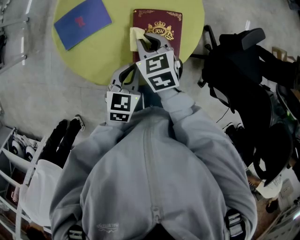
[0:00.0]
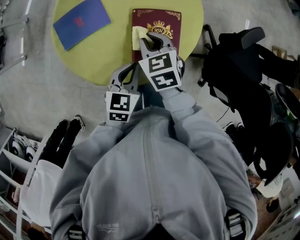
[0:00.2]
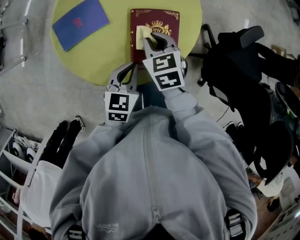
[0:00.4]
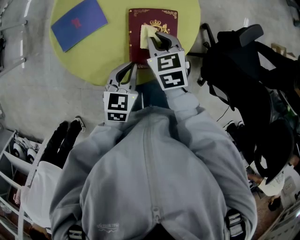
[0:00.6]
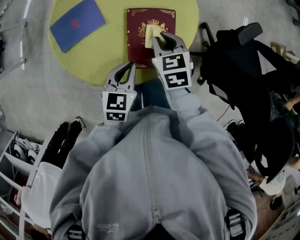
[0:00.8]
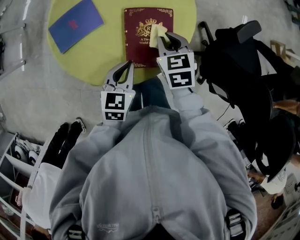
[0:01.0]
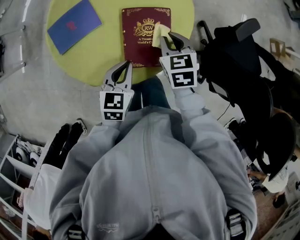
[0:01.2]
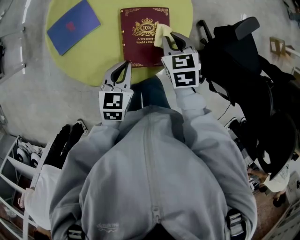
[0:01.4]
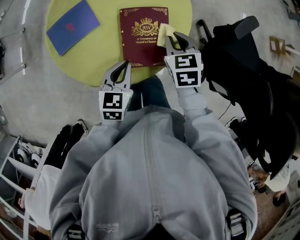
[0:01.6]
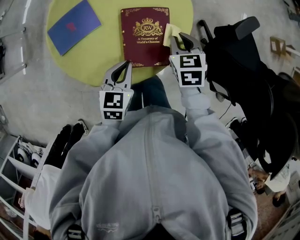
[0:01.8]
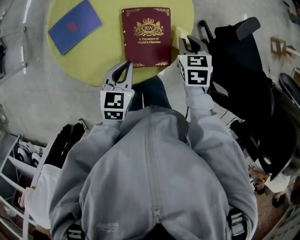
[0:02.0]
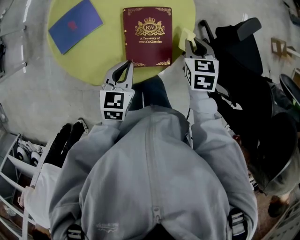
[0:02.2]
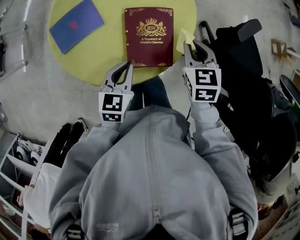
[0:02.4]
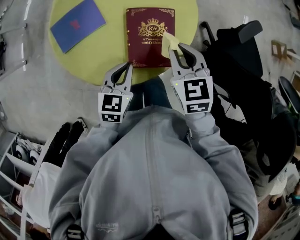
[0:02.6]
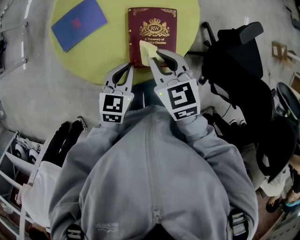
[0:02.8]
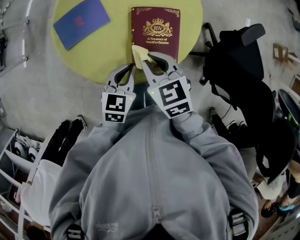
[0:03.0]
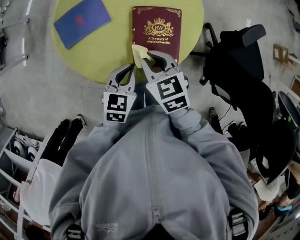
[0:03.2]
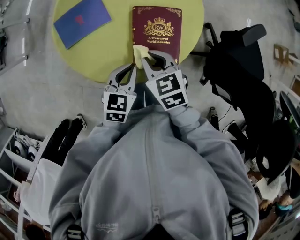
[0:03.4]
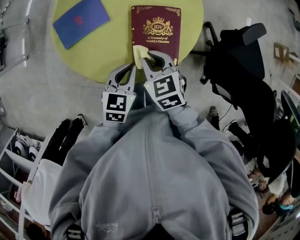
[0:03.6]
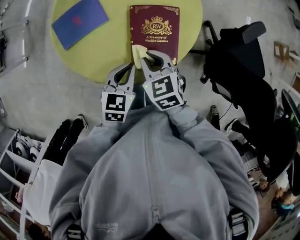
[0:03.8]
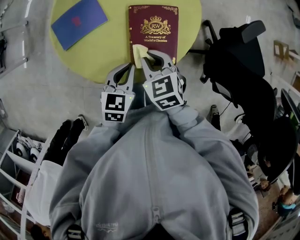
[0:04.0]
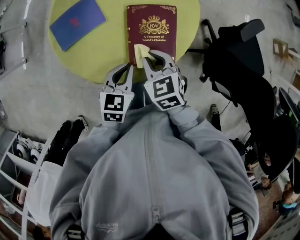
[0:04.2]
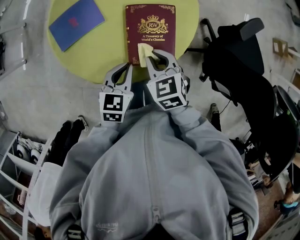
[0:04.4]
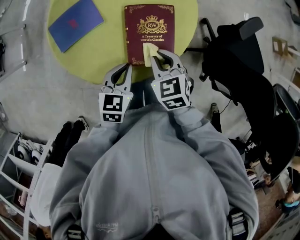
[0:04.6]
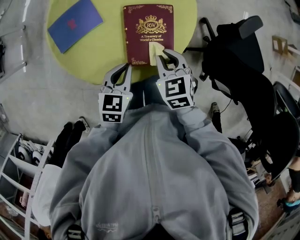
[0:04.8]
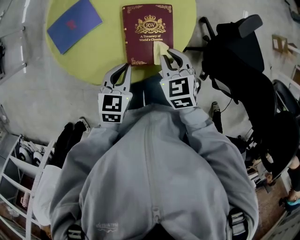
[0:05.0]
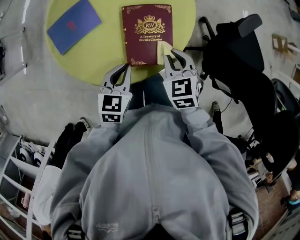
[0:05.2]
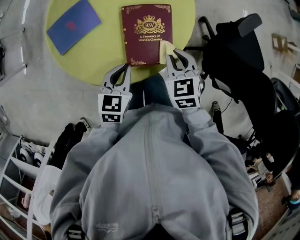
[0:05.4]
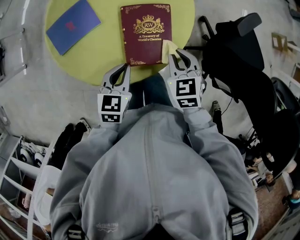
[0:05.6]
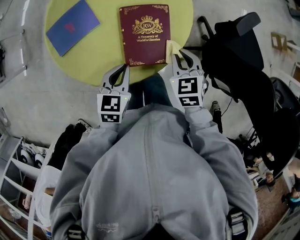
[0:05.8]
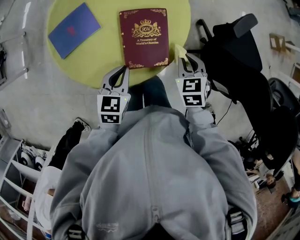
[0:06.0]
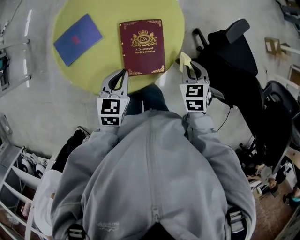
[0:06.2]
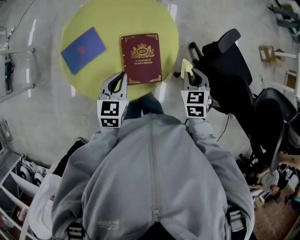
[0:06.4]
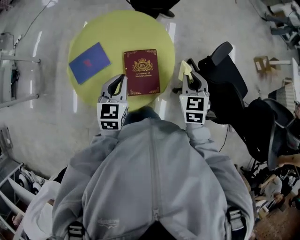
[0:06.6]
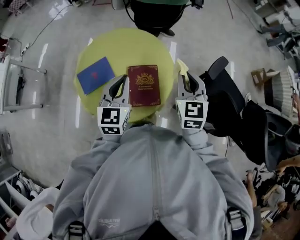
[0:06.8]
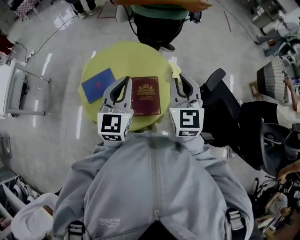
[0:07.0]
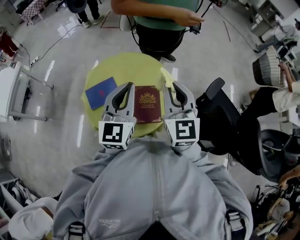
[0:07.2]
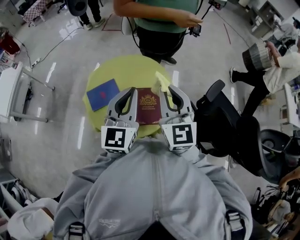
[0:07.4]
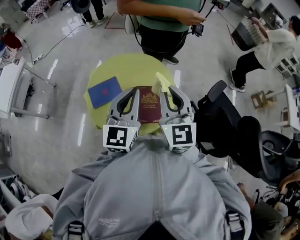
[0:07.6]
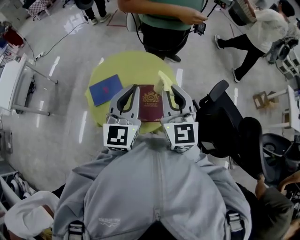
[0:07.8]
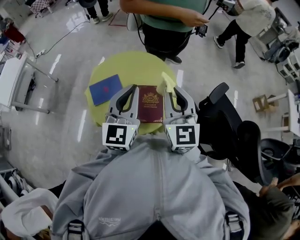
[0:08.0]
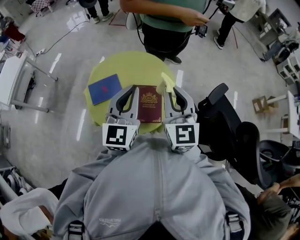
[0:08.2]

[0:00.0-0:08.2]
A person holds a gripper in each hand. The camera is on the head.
0.0 to 1.6 s: The right gripper heads to the right, covering roughly 15 cm.
1.6 to 3.2 s: The right gripper travels to the left and backward by approximately 15 cm, and changes its angle by some 20 degrees.
3.2 to 5.0 s: The right gripper heads to the right, covering some 10 cm.
5.0 to 6.6 s: The left gripper is displaced upward and forward by roughly 20 cm, while the right gripper moves upward and to the right, about 20 cm, and turns by some 20 degrees.
6.6 to 8.2 s: The right gripper shifts about 25 cm upward and to the left, and points its fingers approximately 30 degrees further upward. The left gripper goes about 25 cm upward, and swivels some 30 degrees.

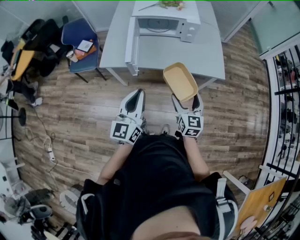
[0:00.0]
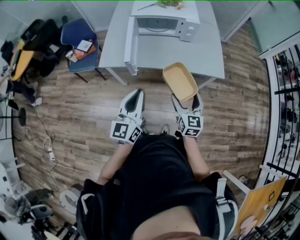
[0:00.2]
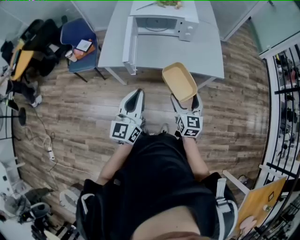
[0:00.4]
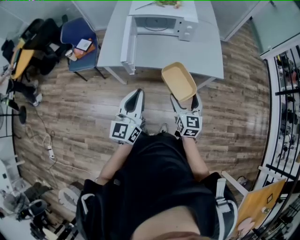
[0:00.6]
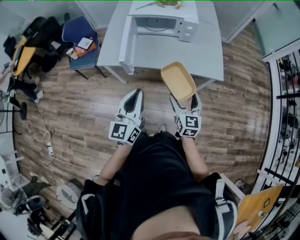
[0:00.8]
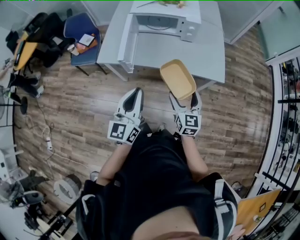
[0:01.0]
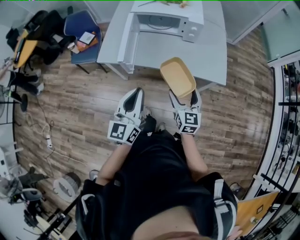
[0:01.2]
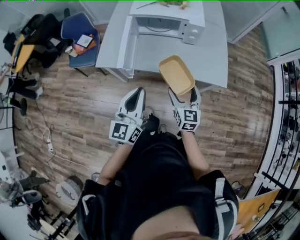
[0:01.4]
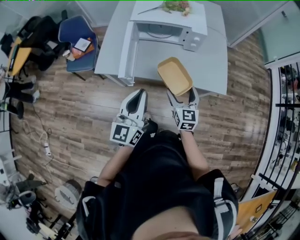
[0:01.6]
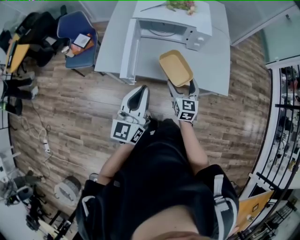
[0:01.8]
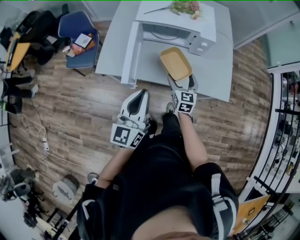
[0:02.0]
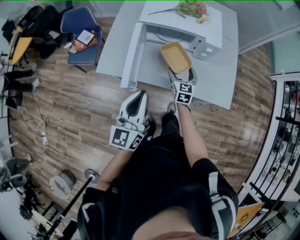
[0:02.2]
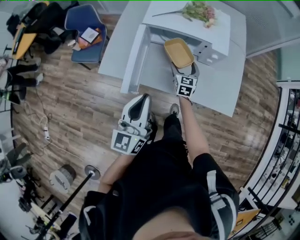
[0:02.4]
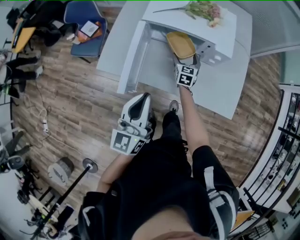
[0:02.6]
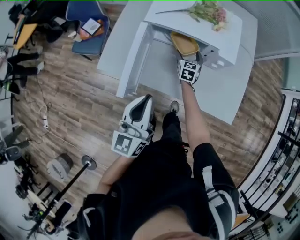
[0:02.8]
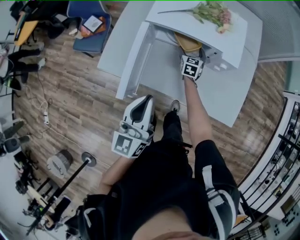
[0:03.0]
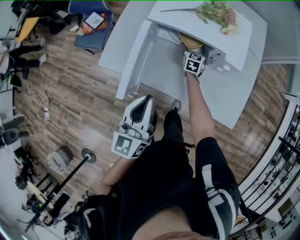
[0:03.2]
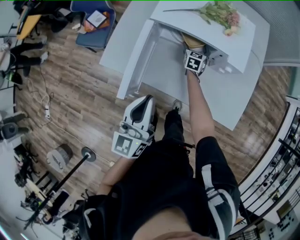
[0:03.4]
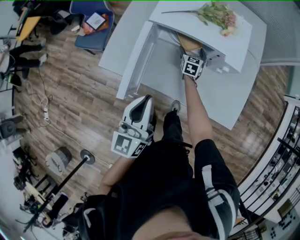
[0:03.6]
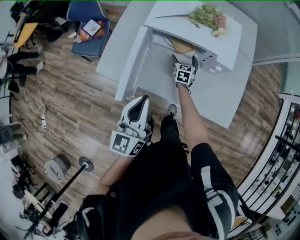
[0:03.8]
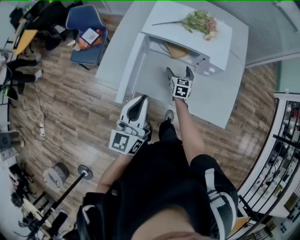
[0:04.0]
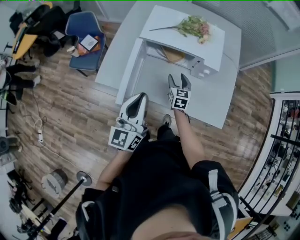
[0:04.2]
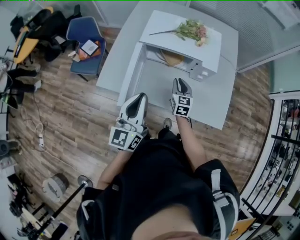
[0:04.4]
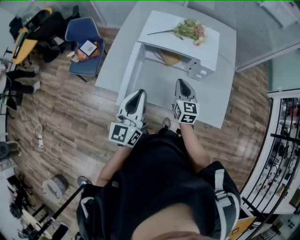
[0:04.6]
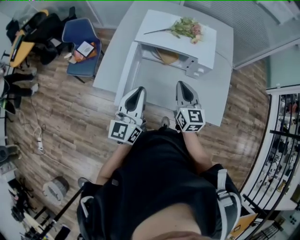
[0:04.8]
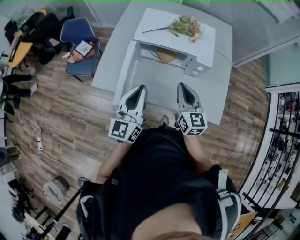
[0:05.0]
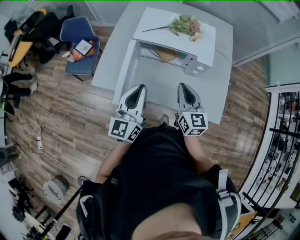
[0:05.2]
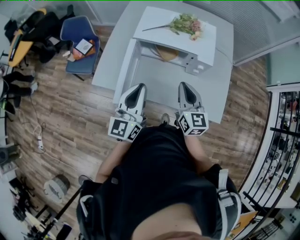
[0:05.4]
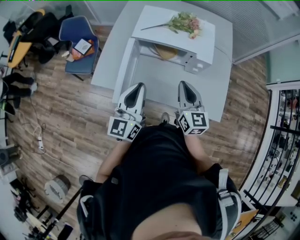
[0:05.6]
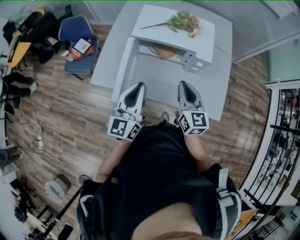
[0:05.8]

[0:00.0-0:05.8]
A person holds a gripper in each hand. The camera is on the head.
0.0 to 1.4 s: The grippers both shift forward by approximately 10 cm.
1.4 to 2.8 s: The left gripper shifts roughly 20 cm forward. The right gripper heads forward and downward, covering about 50 cm.
2.8 to 4.4 s: The left gripper shifts roughly 5 cm upward; the right gripper is displaced backward and upward by approximately 15 cm, and closes its fingers.
4.4 to 5.8 s: The right gripper shifts about 15 cm upward and backward.

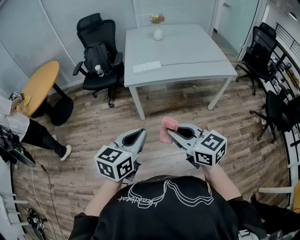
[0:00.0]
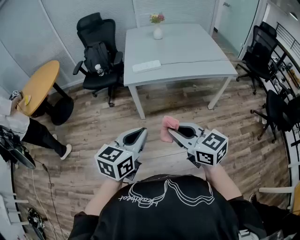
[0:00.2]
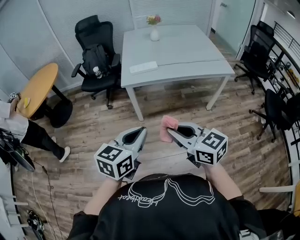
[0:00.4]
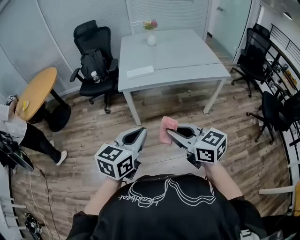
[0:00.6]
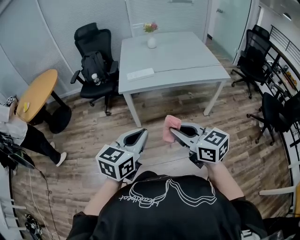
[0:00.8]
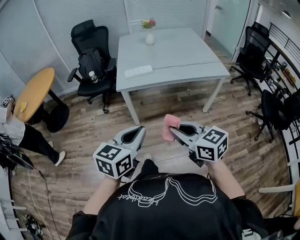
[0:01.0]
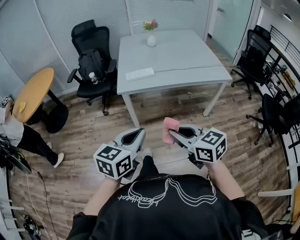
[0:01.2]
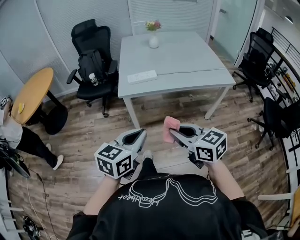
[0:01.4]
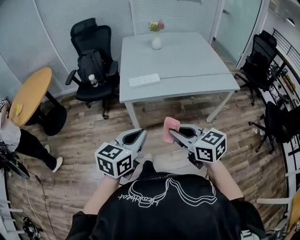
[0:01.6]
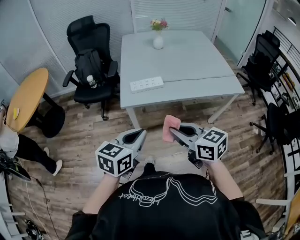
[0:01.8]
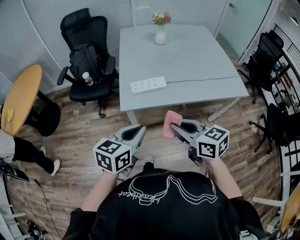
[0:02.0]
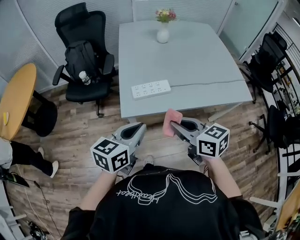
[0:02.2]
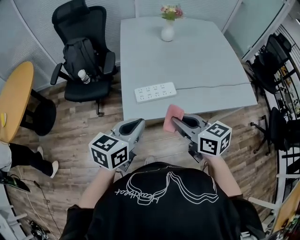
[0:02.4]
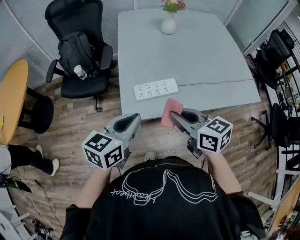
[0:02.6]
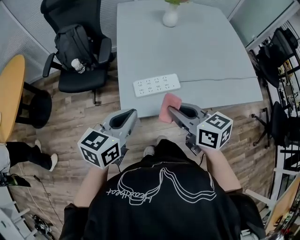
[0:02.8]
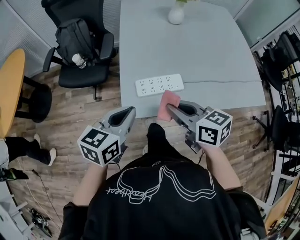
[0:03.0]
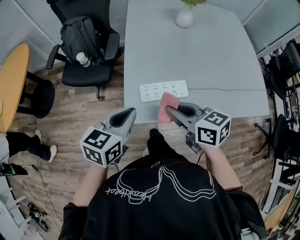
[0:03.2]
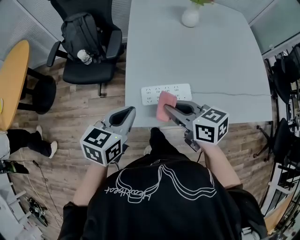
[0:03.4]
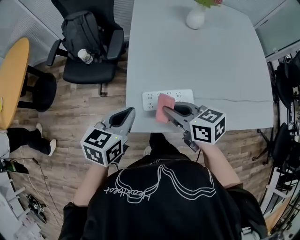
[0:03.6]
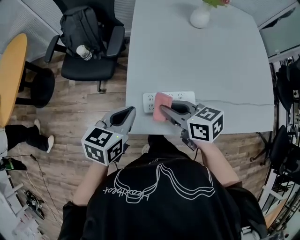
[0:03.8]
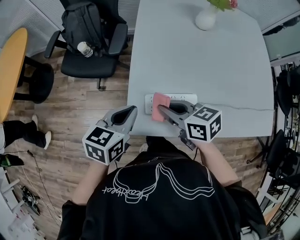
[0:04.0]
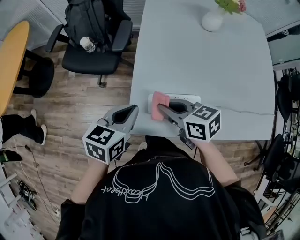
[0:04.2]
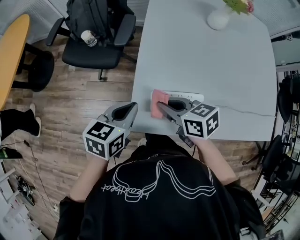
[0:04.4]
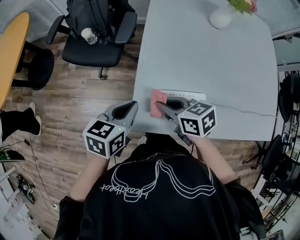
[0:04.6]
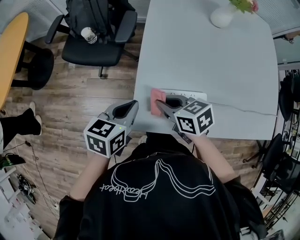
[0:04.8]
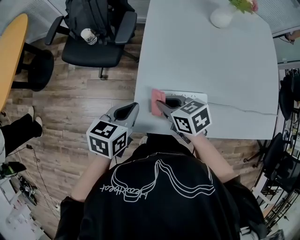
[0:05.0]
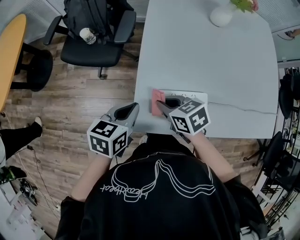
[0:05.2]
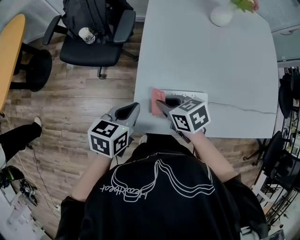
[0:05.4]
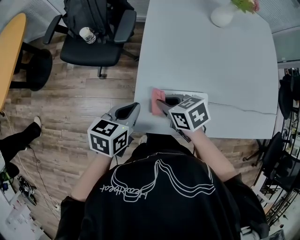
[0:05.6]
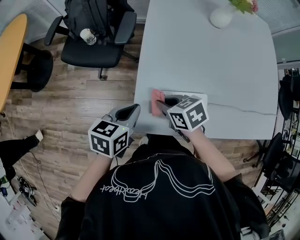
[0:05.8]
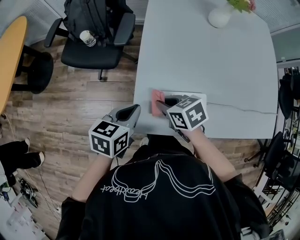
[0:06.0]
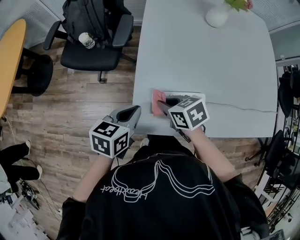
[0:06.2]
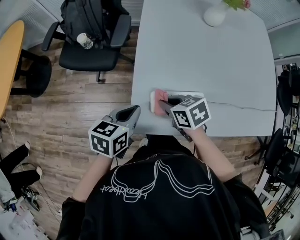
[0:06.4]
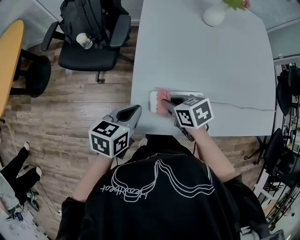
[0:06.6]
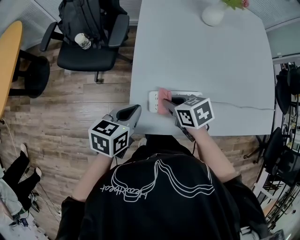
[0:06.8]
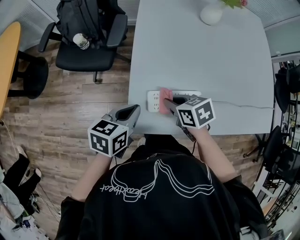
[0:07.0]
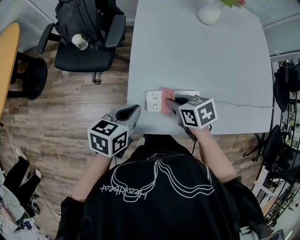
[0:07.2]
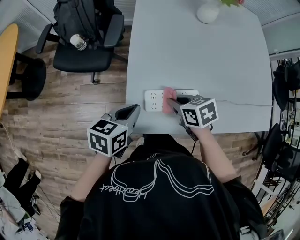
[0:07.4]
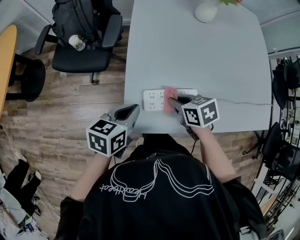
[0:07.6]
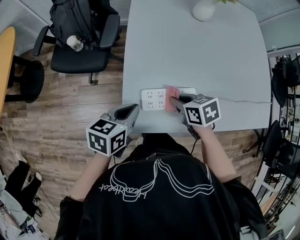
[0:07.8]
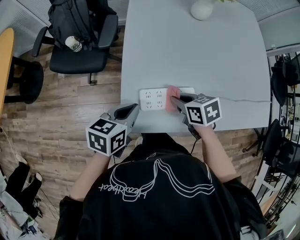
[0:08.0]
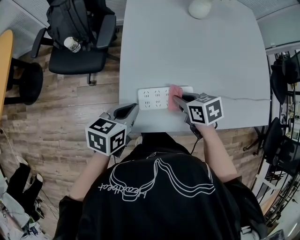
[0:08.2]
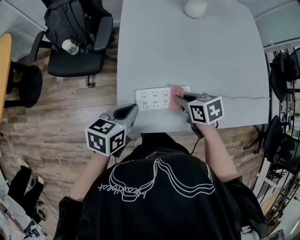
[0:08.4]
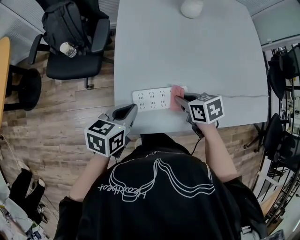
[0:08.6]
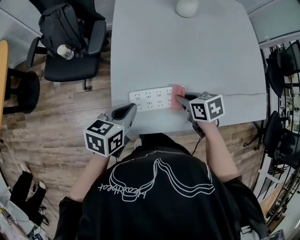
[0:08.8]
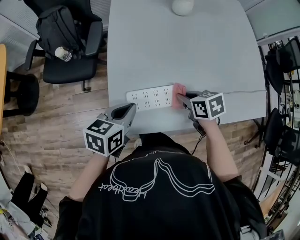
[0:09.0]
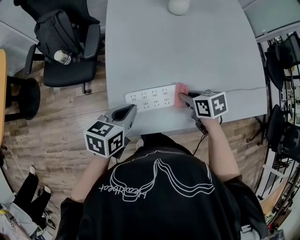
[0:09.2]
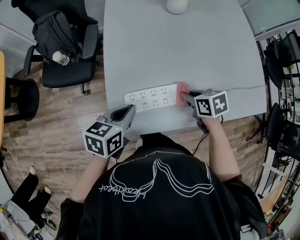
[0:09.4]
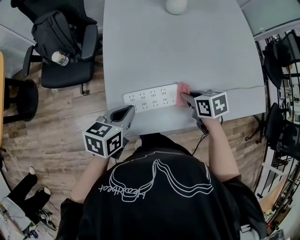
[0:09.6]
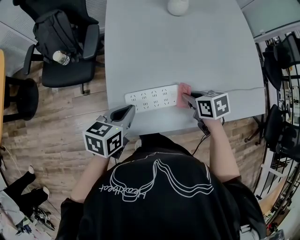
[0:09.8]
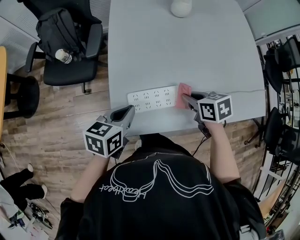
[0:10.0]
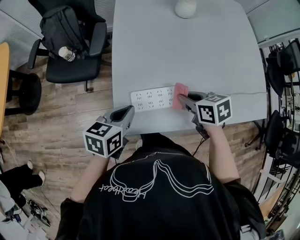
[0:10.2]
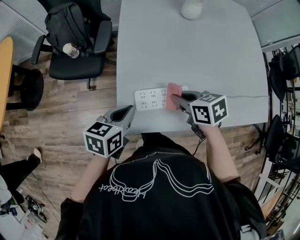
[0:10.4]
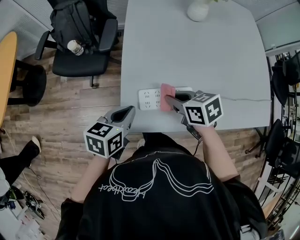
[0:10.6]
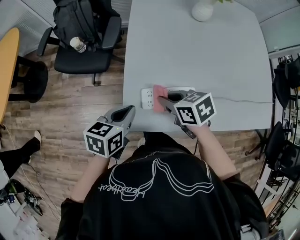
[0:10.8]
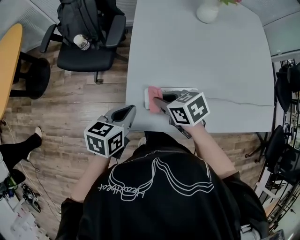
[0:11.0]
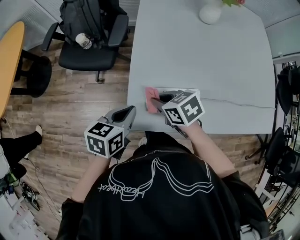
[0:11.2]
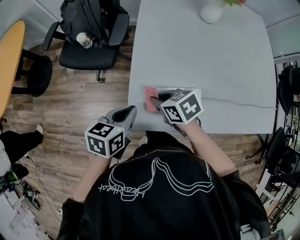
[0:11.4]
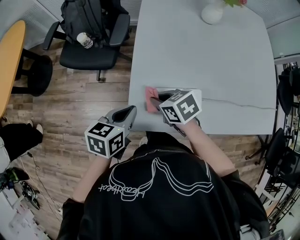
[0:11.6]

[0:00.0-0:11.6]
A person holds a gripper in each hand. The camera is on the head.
0.0 to 1.4 s: The grippers both shift forward by roughly 10 cm.
1.4 to 2.8 s: The two grippers travel together, forward, roughly 40 cm.
2.8 to 4.4 s: The right gripper travels forward, downward and to the left by some 20 cm, and changes its angle by about 30 degrees. Meanwhile the left gripper shifts some 20 cm forward and downward.
4.4 to 5.8 s: The right gripper goes approximately 5 cm downward.
5.8 to 7.2 s: The right gripper heads to the right, covering about 5 cm.
7.2 to 8.8 s: The right gripper heads to the right, covering about 10 cm. The left gripper shifts by roughly 5 cm.
8.8 to 10.2 s: The grippers stay close to where they were, moving slightly.
10.2 to 11.6 s: The right gripper heads to the left, covering roughly 15 cm, and turns by roughly 20 degrees. Meanwhile the left gripper heads to the left, covering some 5 cm.
